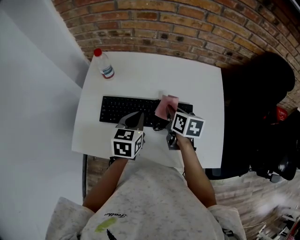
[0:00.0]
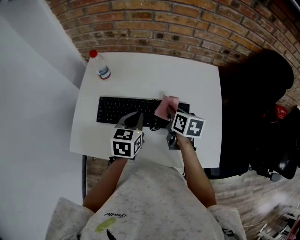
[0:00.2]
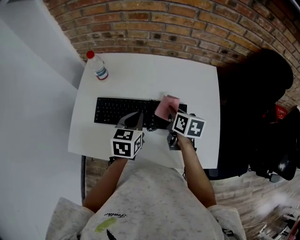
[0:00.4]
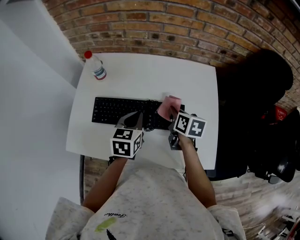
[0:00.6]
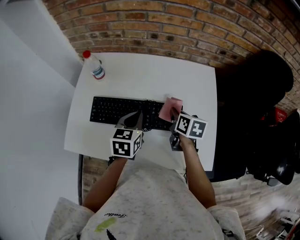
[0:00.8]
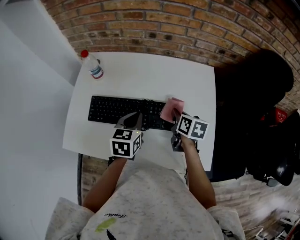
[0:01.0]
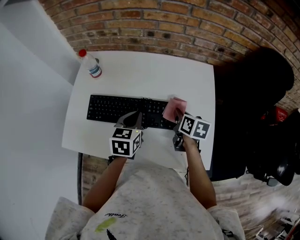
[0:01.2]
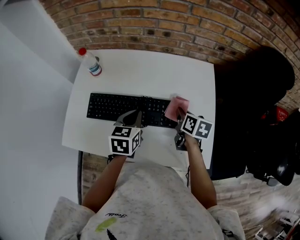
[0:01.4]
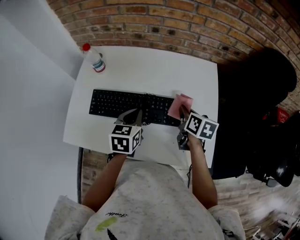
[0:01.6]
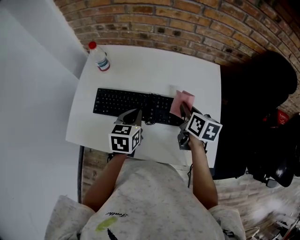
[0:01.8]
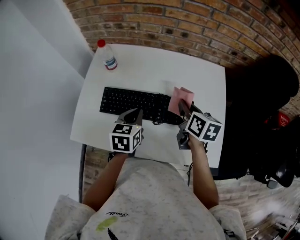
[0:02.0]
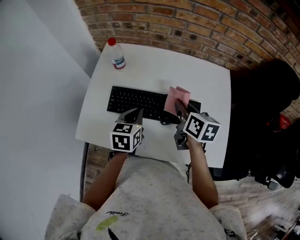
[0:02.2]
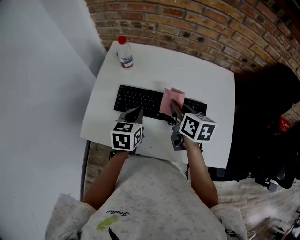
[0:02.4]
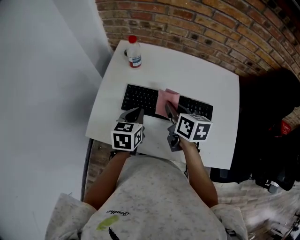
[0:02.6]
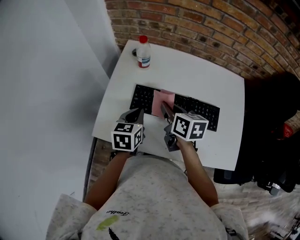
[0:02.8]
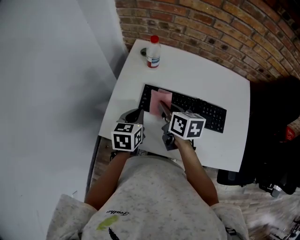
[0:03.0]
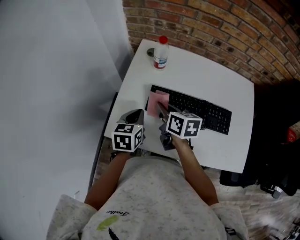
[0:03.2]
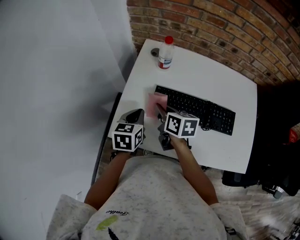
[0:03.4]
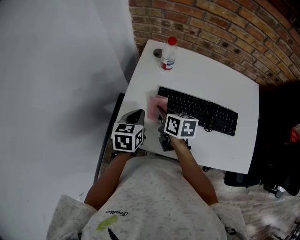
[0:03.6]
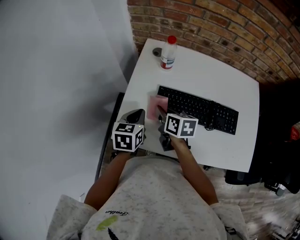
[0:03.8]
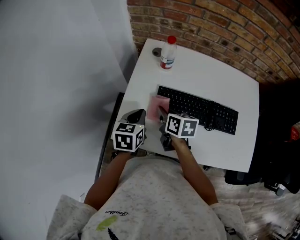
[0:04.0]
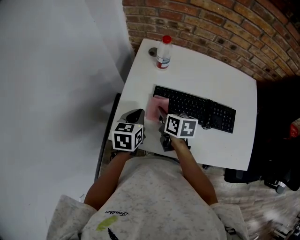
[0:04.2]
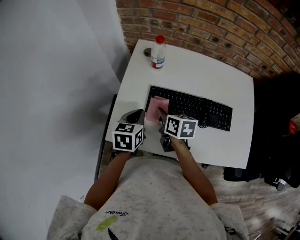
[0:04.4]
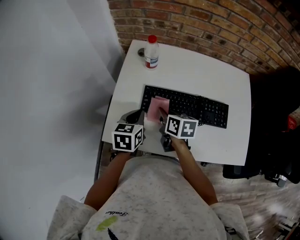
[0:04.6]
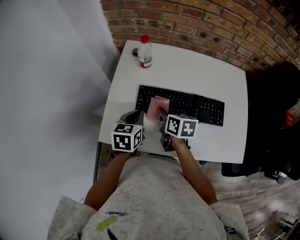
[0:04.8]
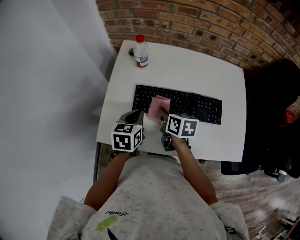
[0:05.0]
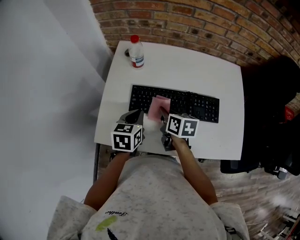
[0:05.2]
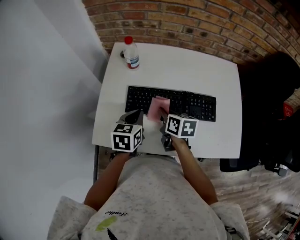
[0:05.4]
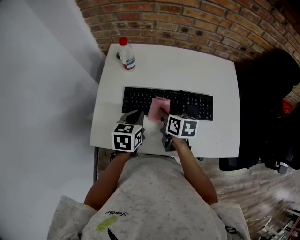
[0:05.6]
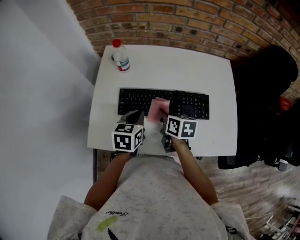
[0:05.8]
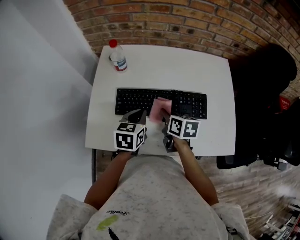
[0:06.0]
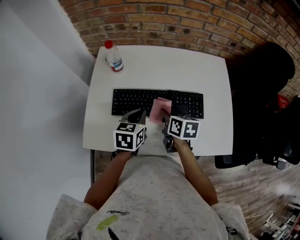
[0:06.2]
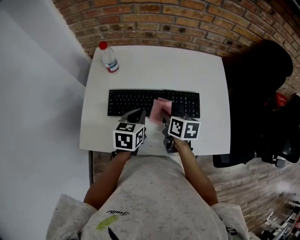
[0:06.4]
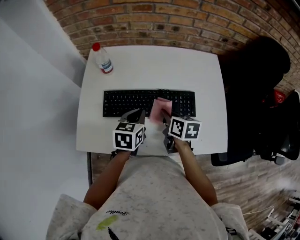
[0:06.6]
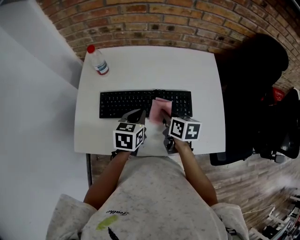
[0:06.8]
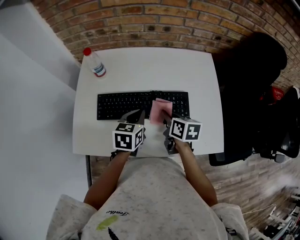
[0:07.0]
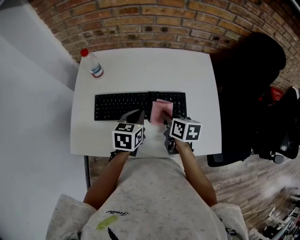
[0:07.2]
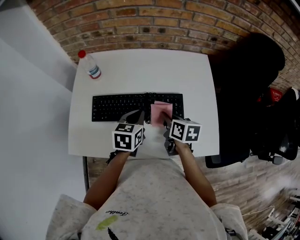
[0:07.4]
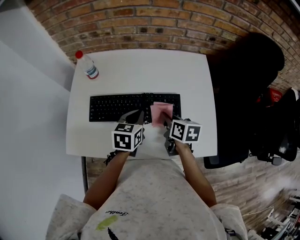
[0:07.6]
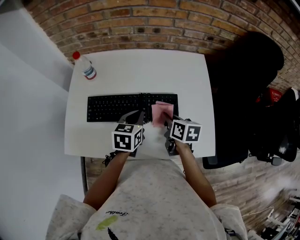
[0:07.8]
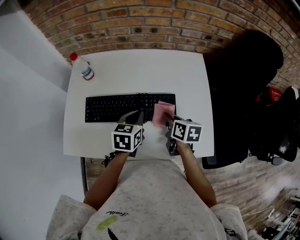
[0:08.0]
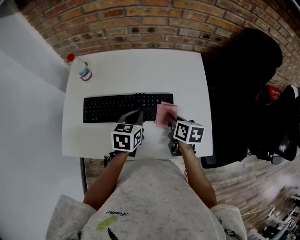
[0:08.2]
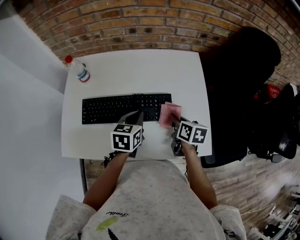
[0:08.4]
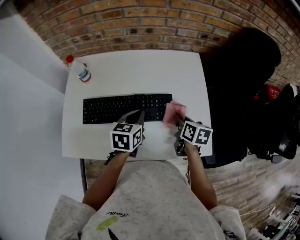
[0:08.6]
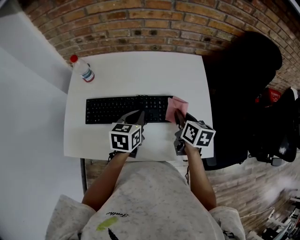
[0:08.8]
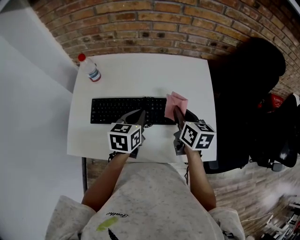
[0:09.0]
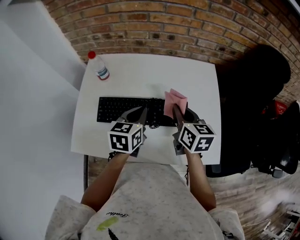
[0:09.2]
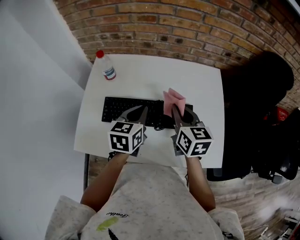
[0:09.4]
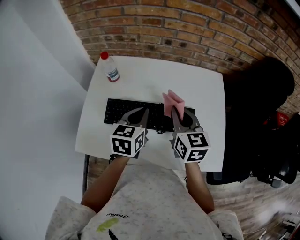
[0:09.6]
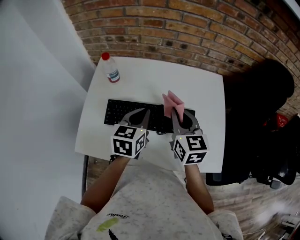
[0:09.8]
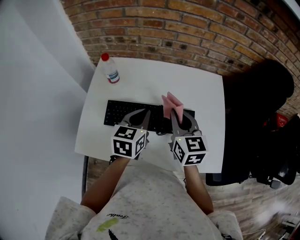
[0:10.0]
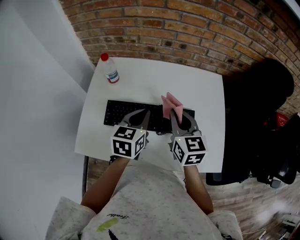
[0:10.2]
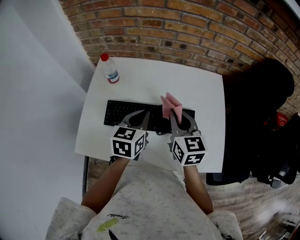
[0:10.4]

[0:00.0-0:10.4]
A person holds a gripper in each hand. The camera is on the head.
0:00.0 to 0:01.4: The left gripper moves to the right, approximately 5 cm; the right gripper goes approximately 15 cm to the right.
0:01.4 to 0:03.0: The grippers both shift to the left by about 30 cm. The right gripper turns by roughly 20 degrees.
0:03.0 to 0:04.4: The right gripper travels downward by approximately 5 cm.
0:04.4 to 0:06.0: The grippers both shift to the right by approximately 15 cm.
0:06.0 to 0:07.4: The two grippers go approximately 10 cm to the right.
0:07.4 to 0:09.0: The right gripper travels upward and to the right by some 10 cm.
0:09.0 to 0:10.4: The left gripper moves to the left, some 5 cm, while the right gripper travels to the left and upward by approximately 10 cm, and rotates some 20 degrees.

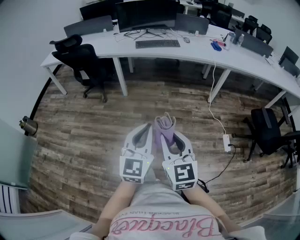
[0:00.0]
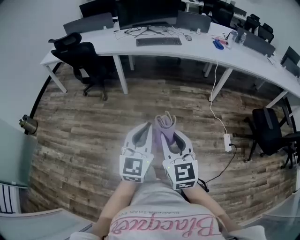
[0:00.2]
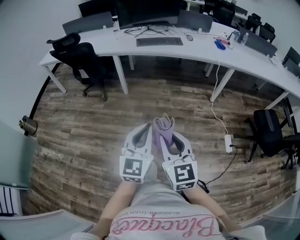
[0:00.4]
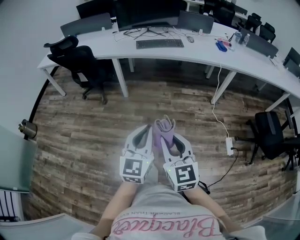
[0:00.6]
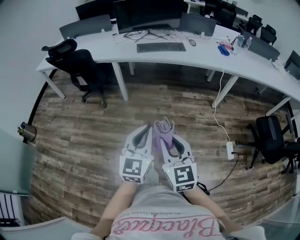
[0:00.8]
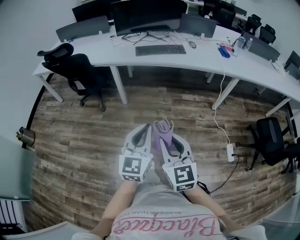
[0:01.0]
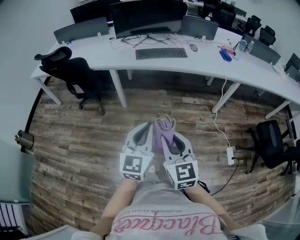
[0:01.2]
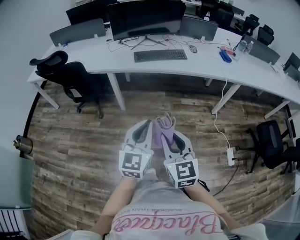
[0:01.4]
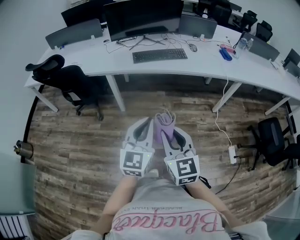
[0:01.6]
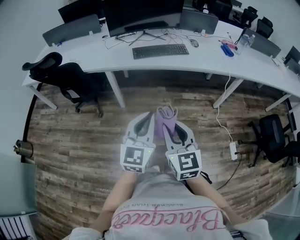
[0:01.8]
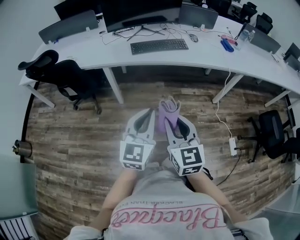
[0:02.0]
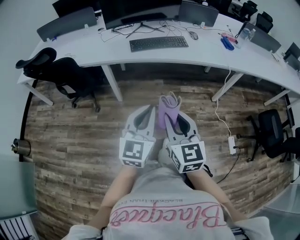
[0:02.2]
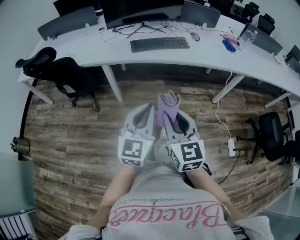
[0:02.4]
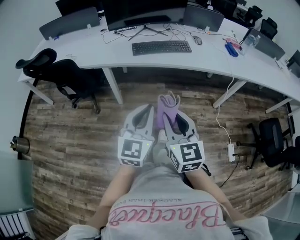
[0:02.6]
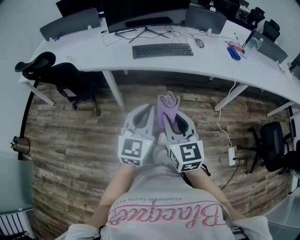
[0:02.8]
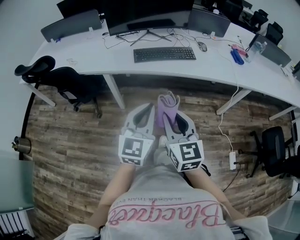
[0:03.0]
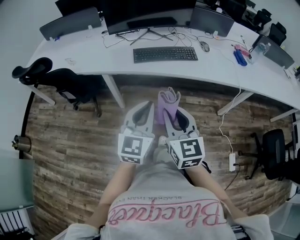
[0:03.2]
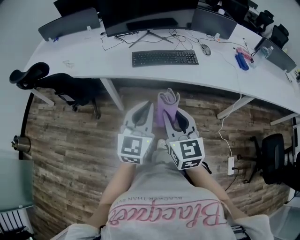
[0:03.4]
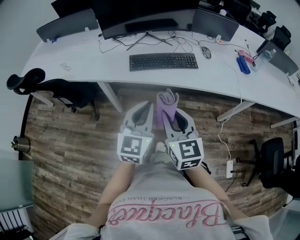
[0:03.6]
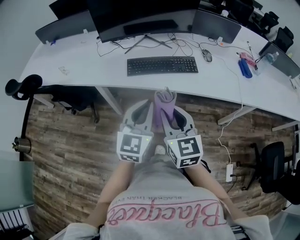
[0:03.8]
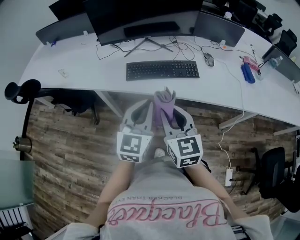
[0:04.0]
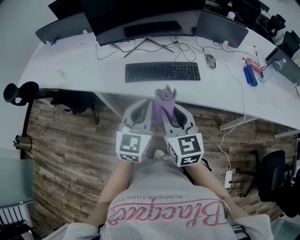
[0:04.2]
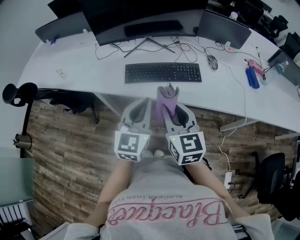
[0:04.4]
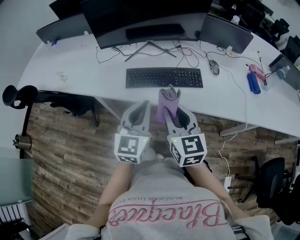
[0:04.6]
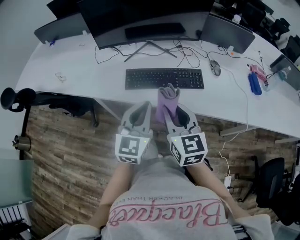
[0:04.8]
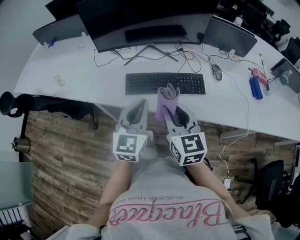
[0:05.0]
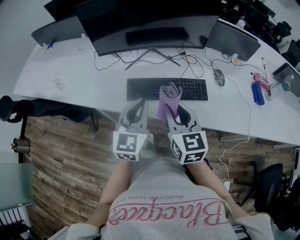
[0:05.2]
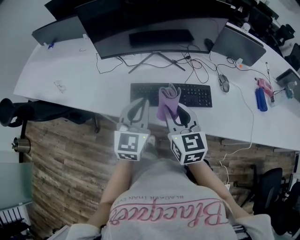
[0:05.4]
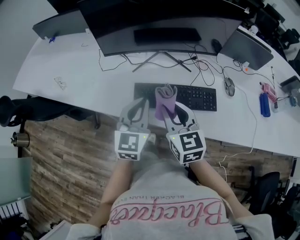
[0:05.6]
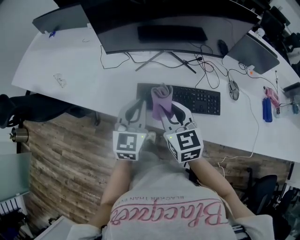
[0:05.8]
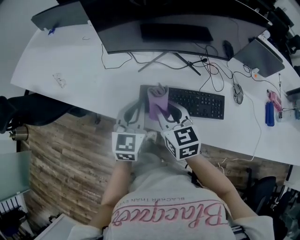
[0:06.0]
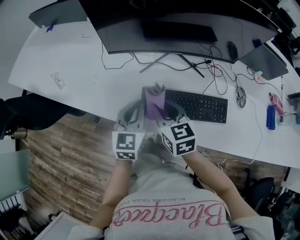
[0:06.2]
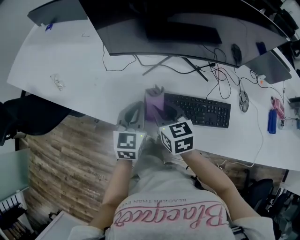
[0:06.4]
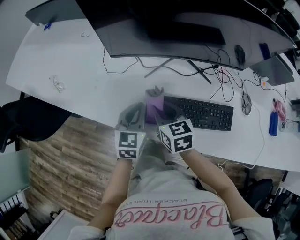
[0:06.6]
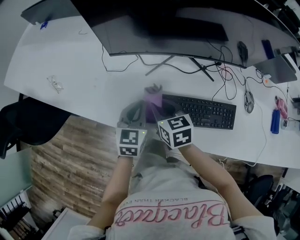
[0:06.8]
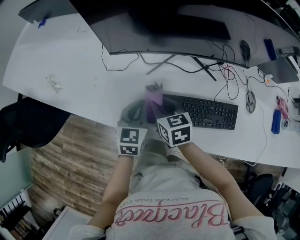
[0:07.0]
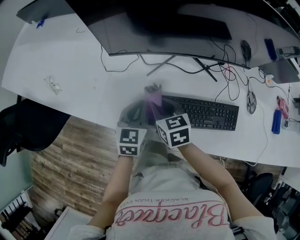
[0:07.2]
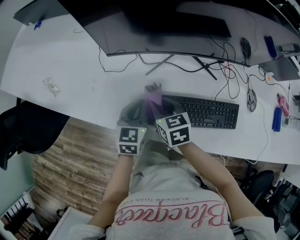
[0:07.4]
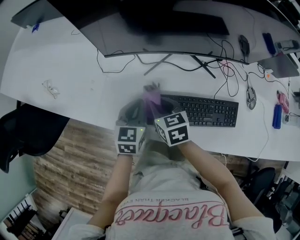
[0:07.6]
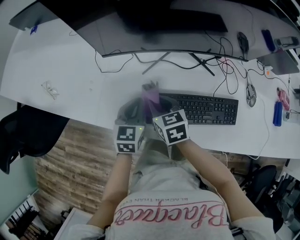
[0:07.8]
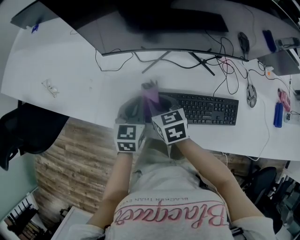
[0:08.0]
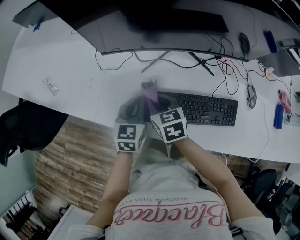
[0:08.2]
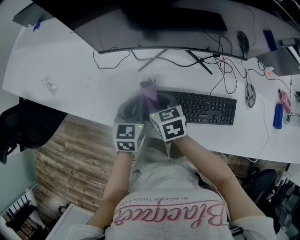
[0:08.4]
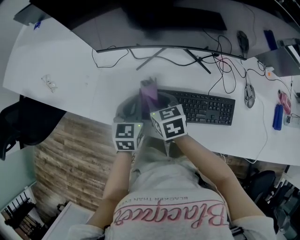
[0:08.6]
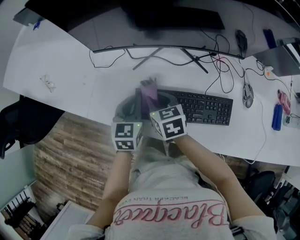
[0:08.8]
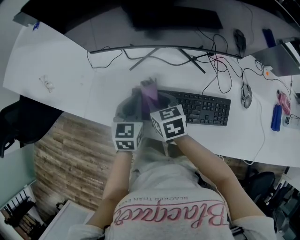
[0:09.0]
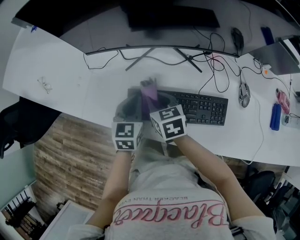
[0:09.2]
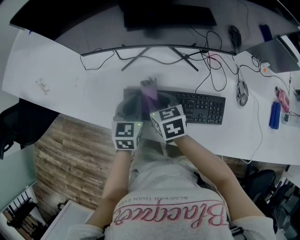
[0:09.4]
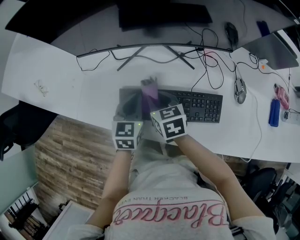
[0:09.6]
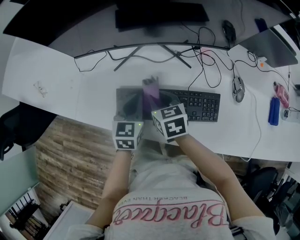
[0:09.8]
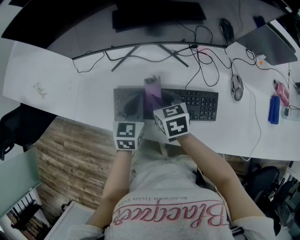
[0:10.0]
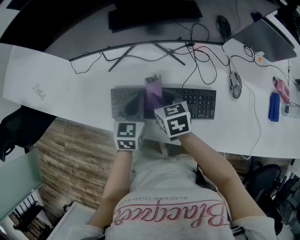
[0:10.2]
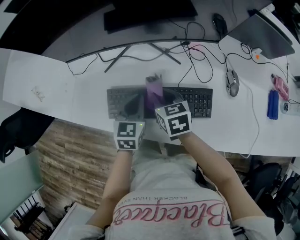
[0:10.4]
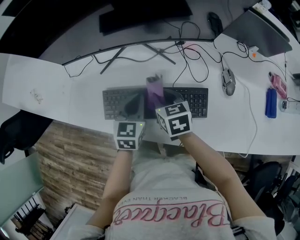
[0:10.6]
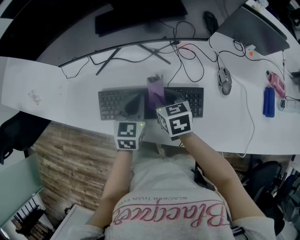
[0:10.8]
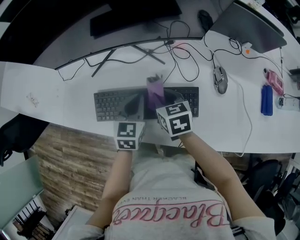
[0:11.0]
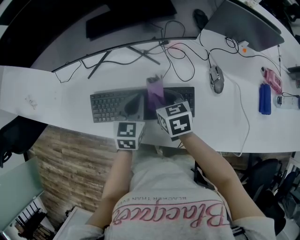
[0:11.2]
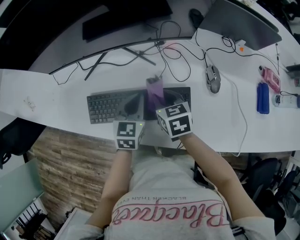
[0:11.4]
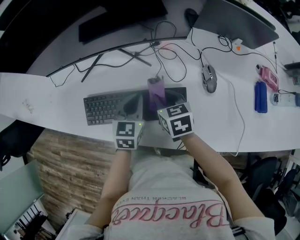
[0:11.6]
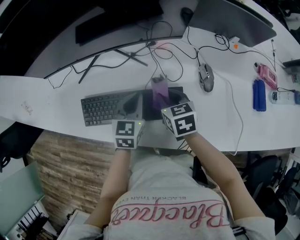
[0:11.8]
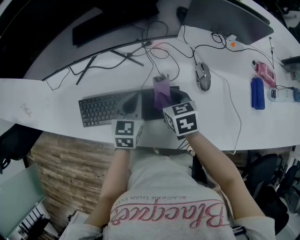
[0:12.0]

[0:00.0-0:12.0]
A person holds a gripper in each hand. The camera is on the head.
0:00.0 to 0:01.6: Both grippers move forward, approximately 35 cm.
0:01.6 to 0:03.0: Both grippers travel together forward, about 15 cm.
0:03.0 to 0:04.4: Both grippers move forward, approximately 25 cm.
0:04.4 to 0:06.0: The grippers both shift forward and to the left by about 25 cm.
0:06.0 to 0:07.6: Both grippers move downward and forward, approximately 15 cm. The right gripper swivels roughly 20 degrees.
0:07.6 to 0:09.0: Both grippers move to the right, approximately 5 cm.
0:09.0 to 0:10.4: The grippers both shift to the right by approximately 15 cm.
0:10.4 to 0:12.0: The grippers both shift to the right by roughly 15 cm.

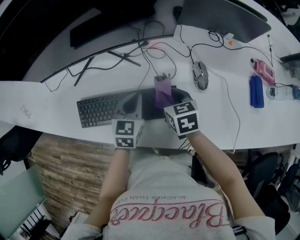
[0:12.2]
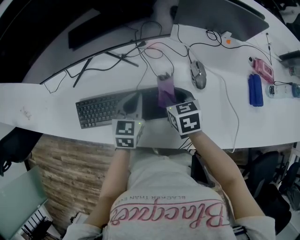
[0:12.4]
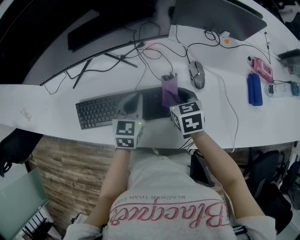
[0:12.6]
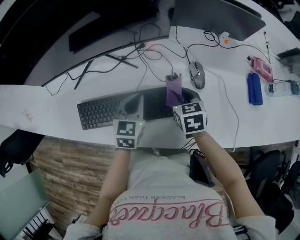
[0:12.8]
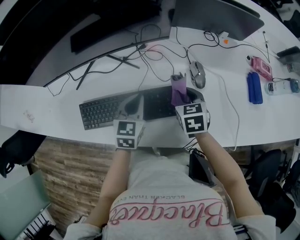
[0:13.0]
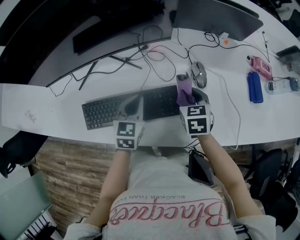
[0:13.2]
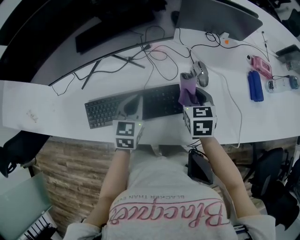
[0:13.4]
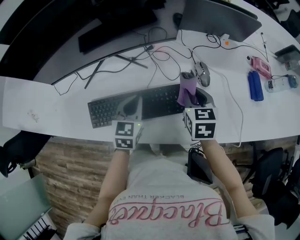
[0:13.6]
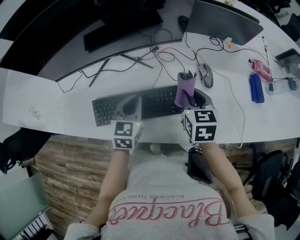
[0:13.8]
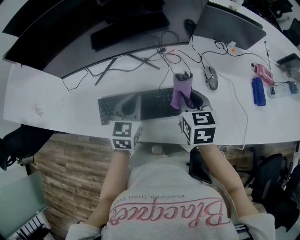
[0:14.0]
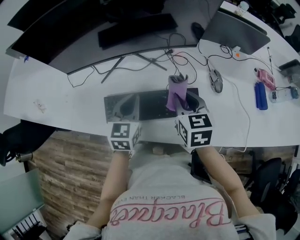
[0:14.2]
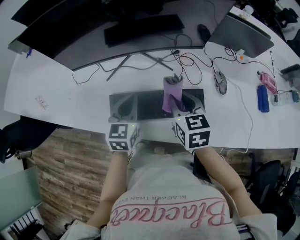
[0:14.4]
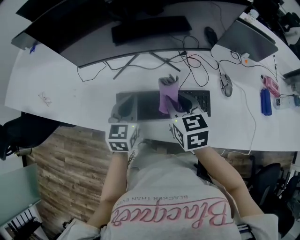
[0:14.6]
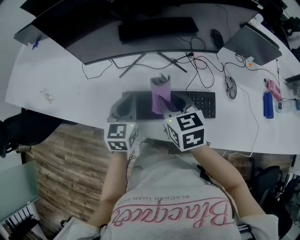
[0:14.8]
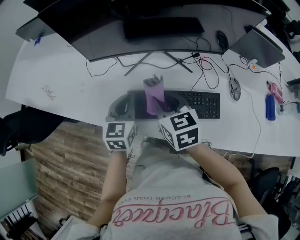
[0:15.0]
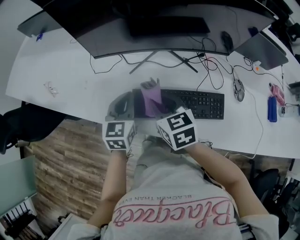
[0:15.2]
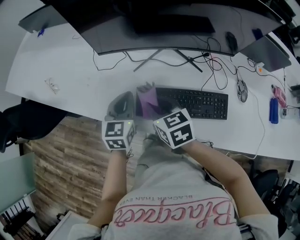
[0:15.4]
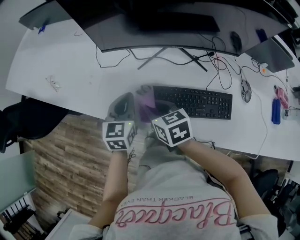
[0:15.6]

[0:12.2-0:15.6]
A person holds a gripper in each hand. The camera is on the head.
0:12.2 to 0:13.8: The right gripper travels upward by approximately 10 cm. The left gripper is displaced to the left by approximately 5 cm.
0:13.8 to 0:15.6: The left gripper changes place by roughly 30 cm, while the right gripper shifts by about 40 cm, and rotates approximately 40 degrees.
